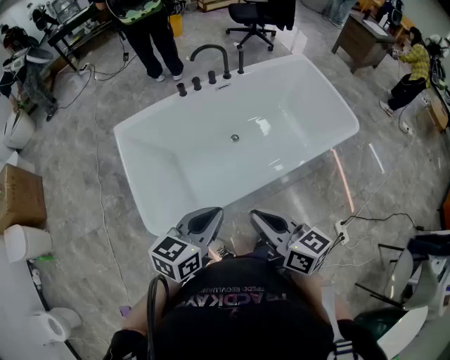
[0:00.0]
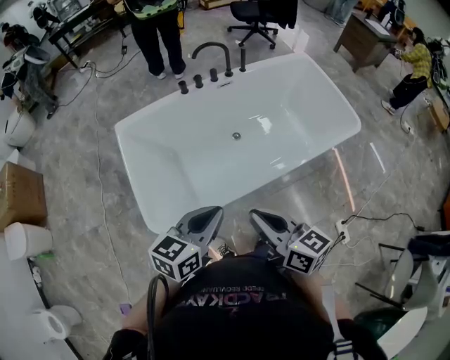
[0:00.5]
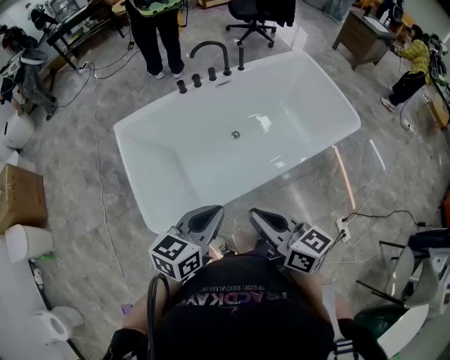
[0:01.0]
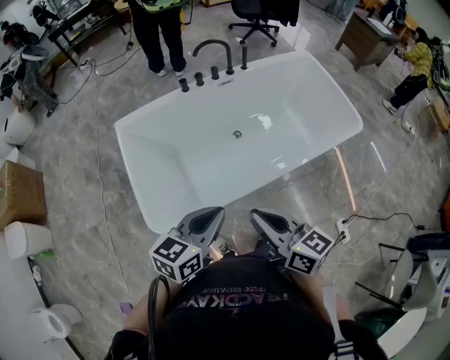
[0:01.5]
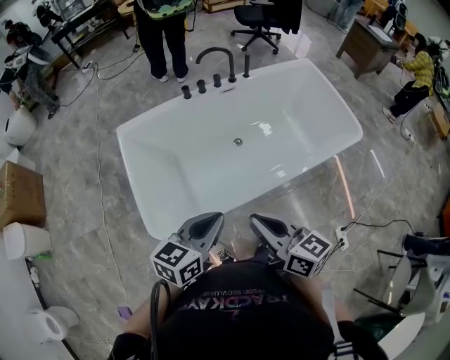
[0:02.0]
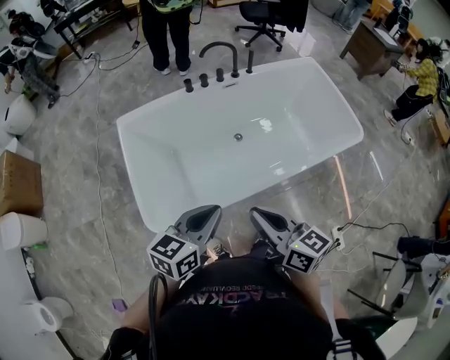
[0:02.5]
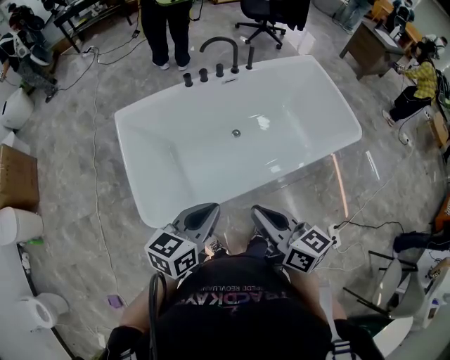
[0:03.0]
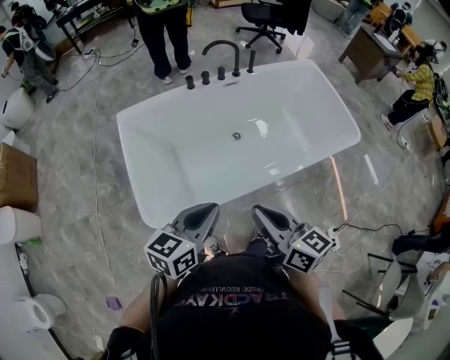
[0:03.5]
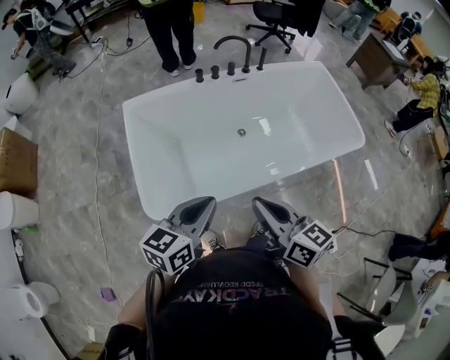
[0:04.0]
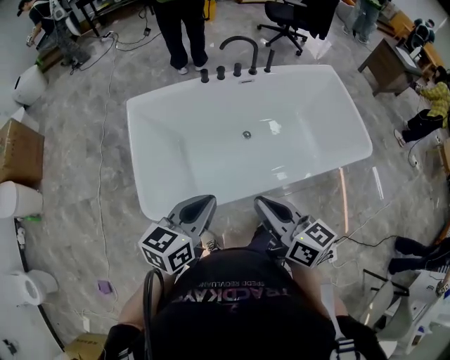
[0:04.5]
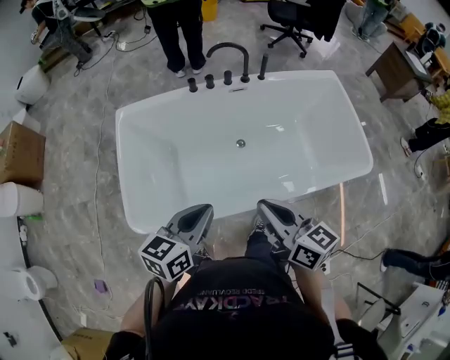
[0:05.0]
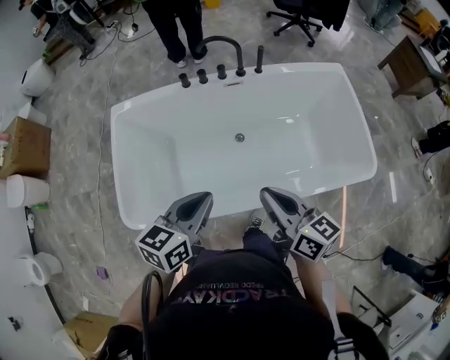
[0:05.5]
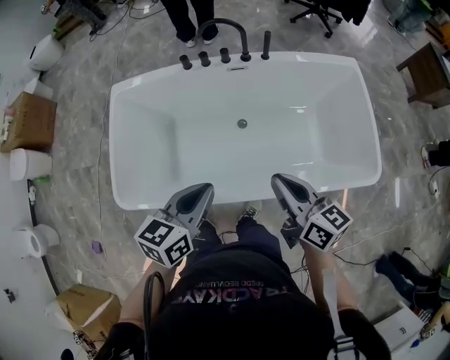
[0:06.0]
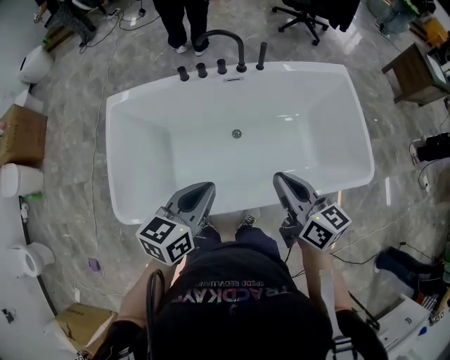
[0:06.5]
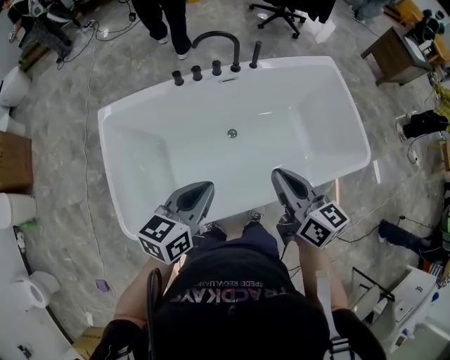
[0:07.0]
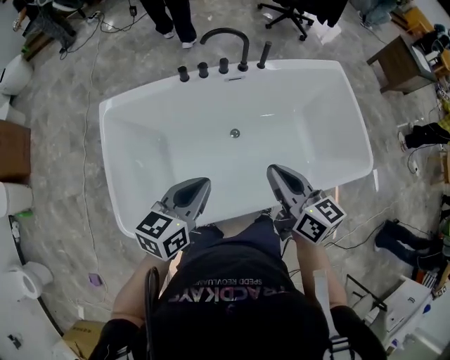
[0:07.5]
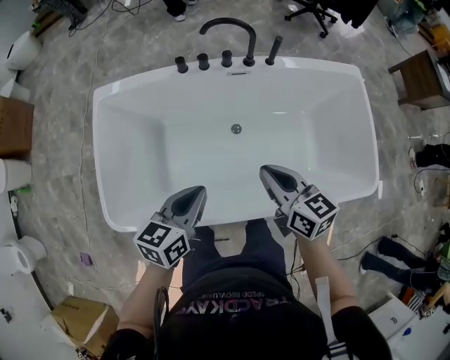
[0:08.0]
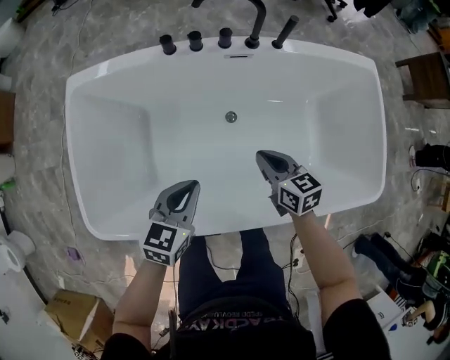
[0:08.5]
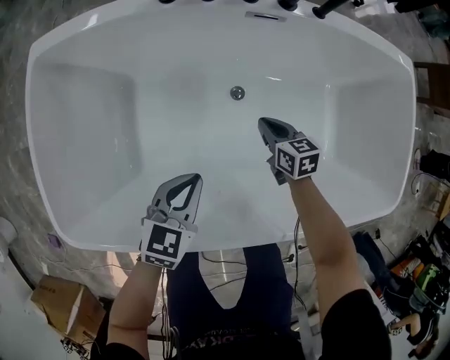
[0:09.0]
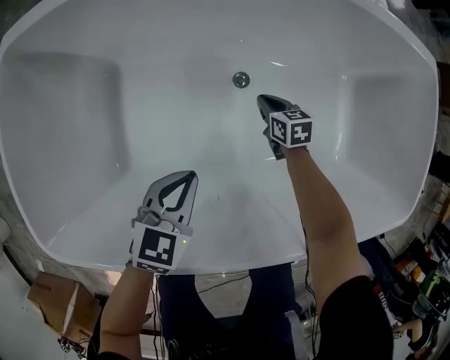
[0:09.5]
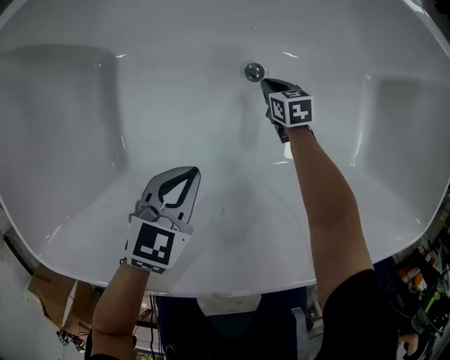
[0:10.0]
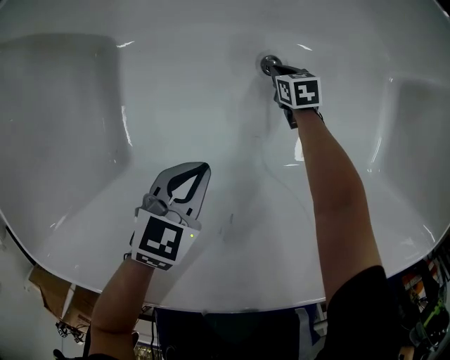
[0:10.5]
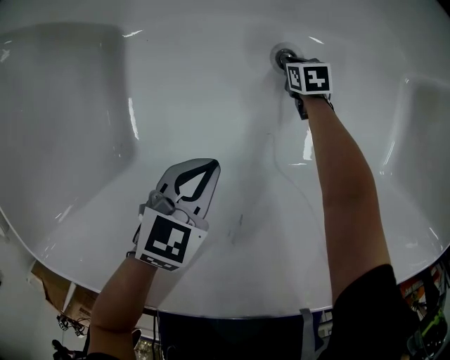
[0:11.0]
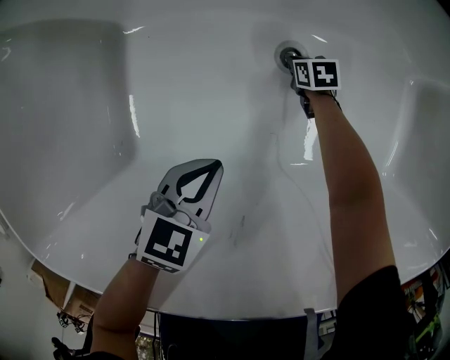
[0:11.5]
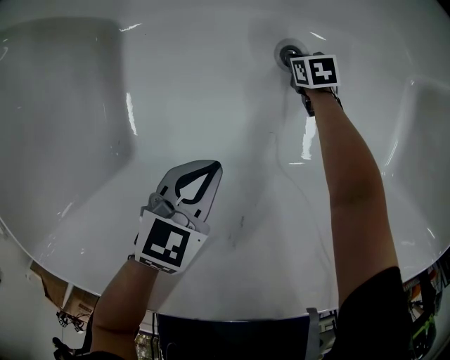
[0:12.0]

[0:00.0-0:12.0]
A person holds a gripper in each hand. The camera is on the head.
0:00.0 to 0:04.0: The grippers stay close to where they were, moving slightly.
0:04.0 to 0:06.0: The two grippers go roughly 30 cm to the right and forward.
0:06.0 to 0:08.0: The right gripper goes roughly 10 cm to the left, forward and downward; the left gripper moves to the left, downward and forward, roughly 10 cm.
0:08.0 to 0:10.0: The right gripper heads downward, covering approximately 60 cm, and tilts its fingers some 30 degrees downward, while the left gripper moves downward, about 35 cm, and turns by some 20 degrees.
0:10.0 to 0:12.0: The left gripper travels downward by some 5 cm. The right gripper is displaced downward by roughly 10 cm.

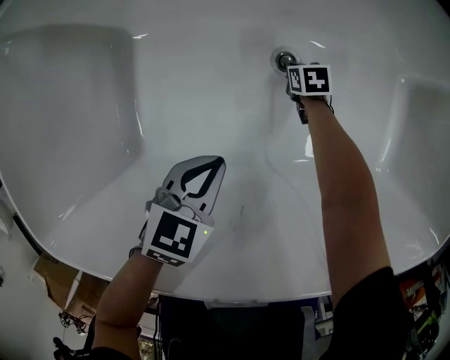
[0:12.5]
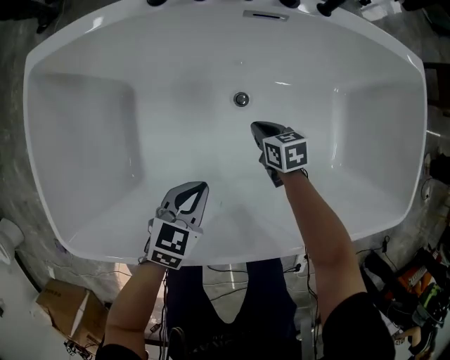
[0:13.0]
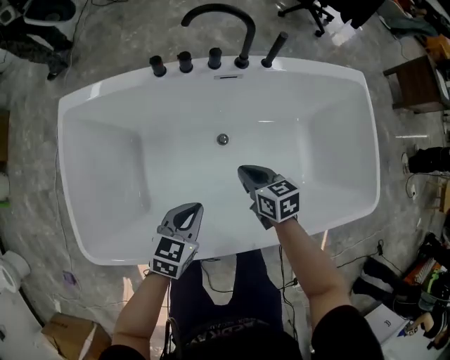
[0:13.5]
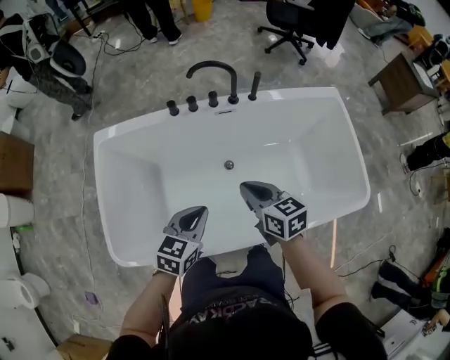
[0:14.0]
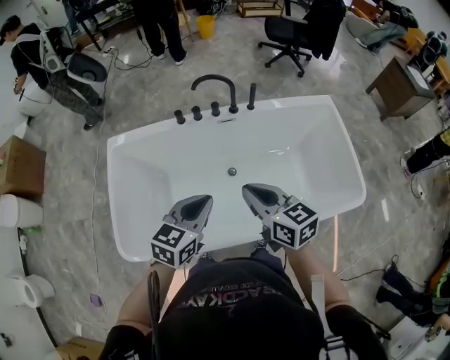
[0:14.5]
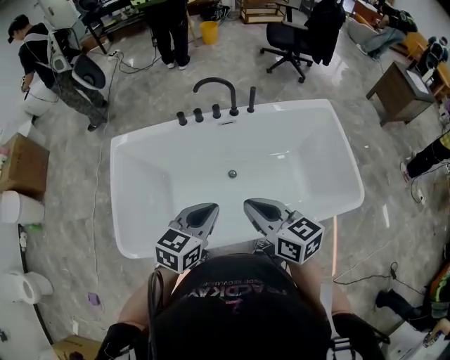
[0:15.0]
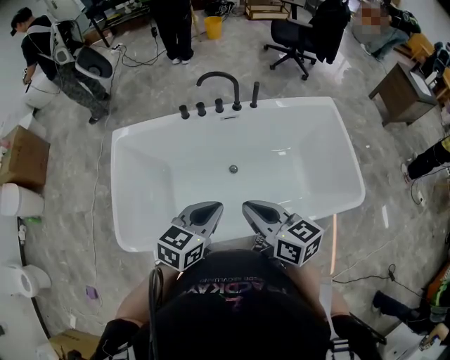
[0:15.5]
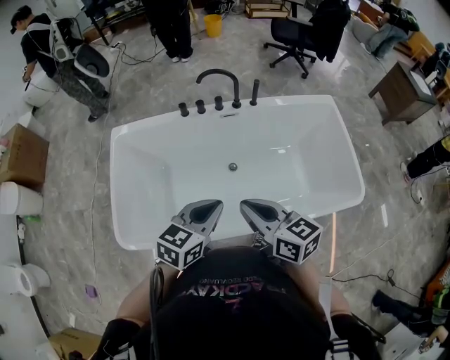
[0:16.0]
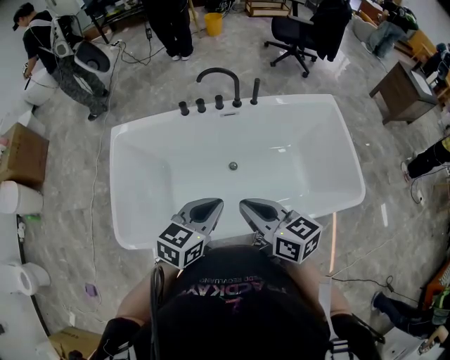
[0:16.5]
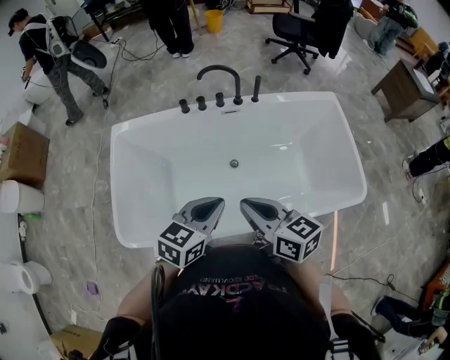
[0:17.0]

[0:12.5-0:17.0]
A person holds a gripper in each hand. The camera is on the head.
0:12.5 to 0:14.5: The right gripper goes roughly 70 cm upward, and tips its fingers upward by some 50 degrees, while the left gripper moves upward, about 50 cm, and rotates about 20 degrees.
0:14.5 to 0:17.0: The two grippers go some 5 cm backward.

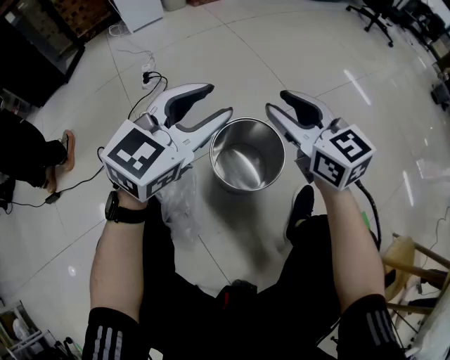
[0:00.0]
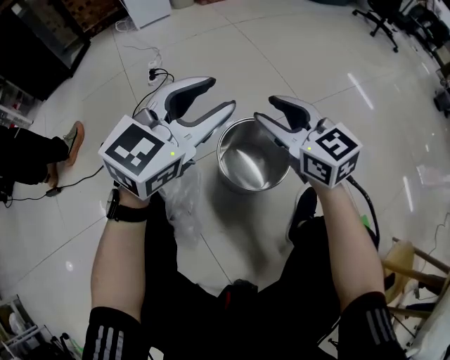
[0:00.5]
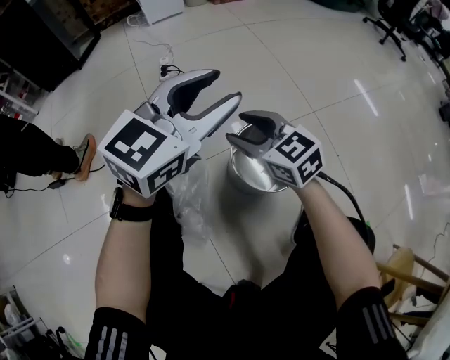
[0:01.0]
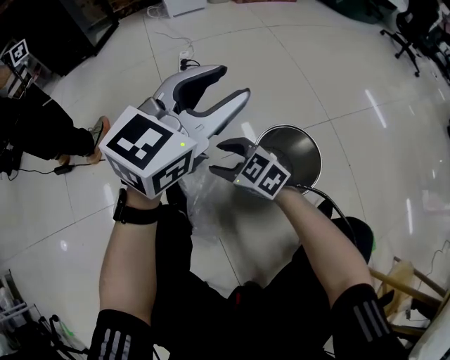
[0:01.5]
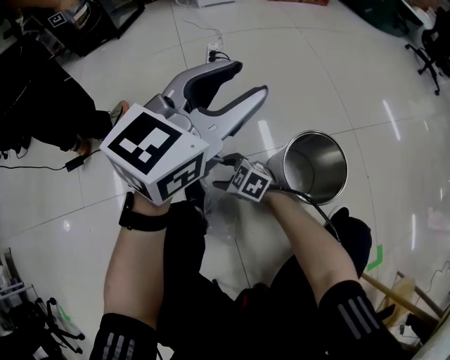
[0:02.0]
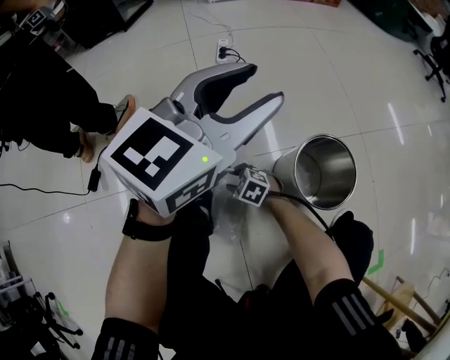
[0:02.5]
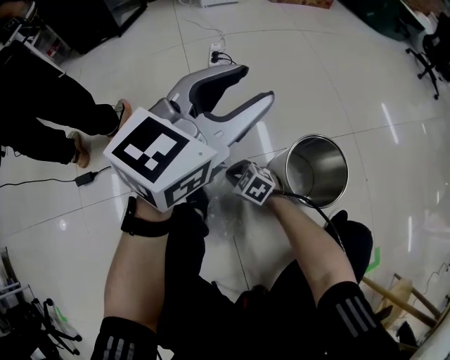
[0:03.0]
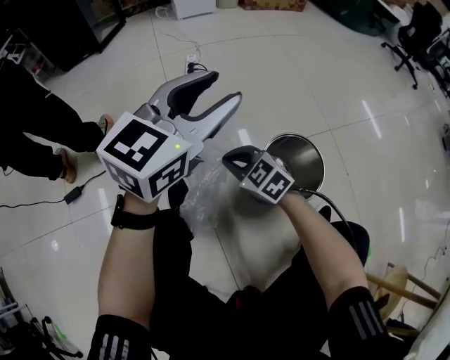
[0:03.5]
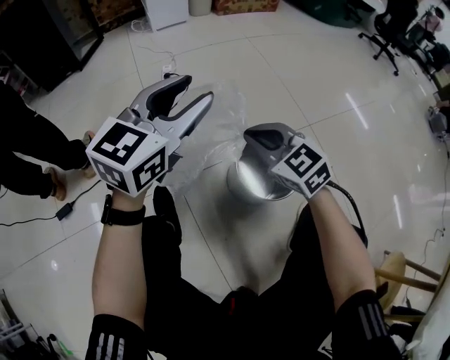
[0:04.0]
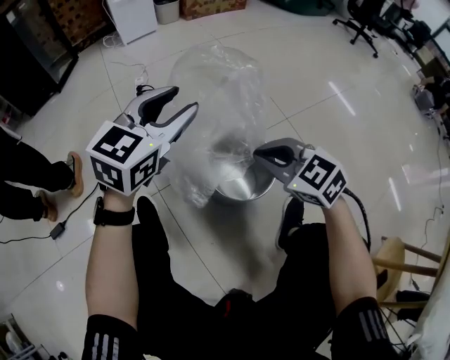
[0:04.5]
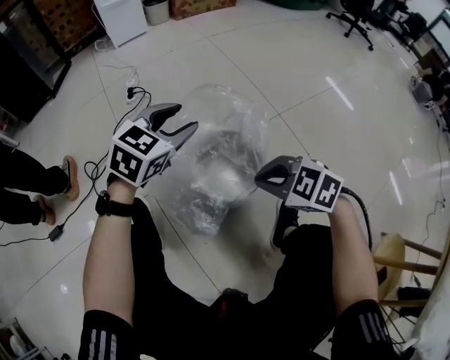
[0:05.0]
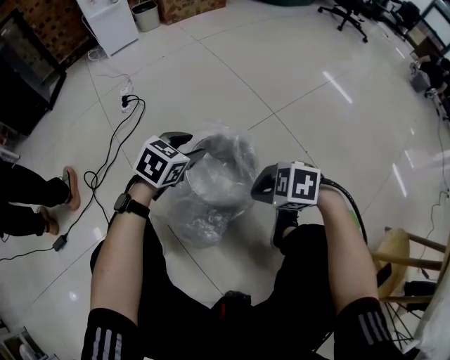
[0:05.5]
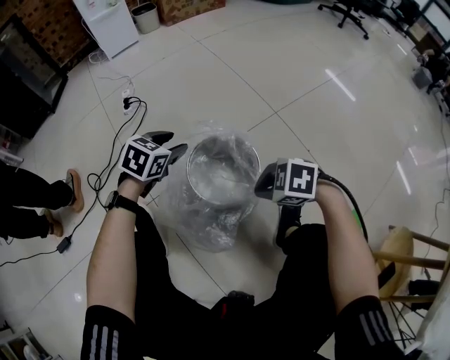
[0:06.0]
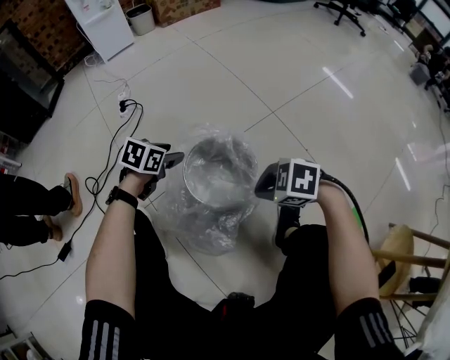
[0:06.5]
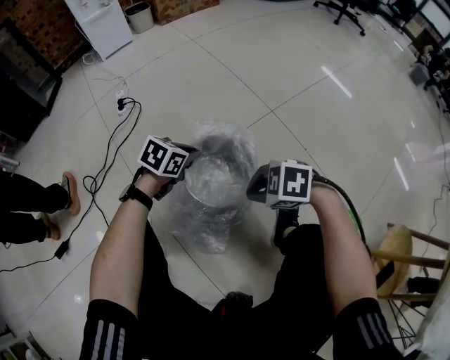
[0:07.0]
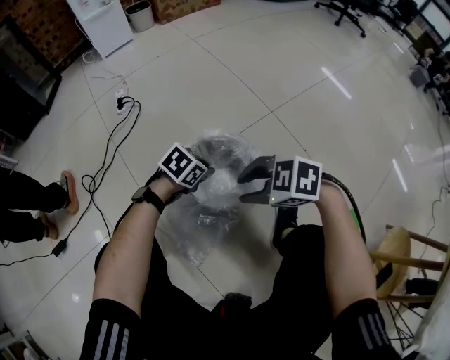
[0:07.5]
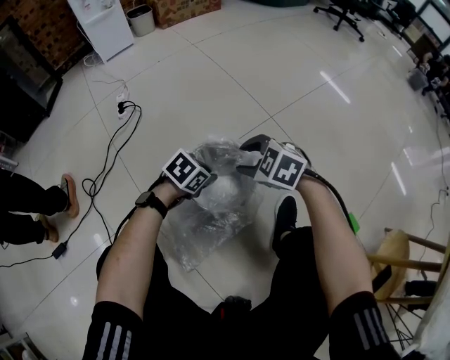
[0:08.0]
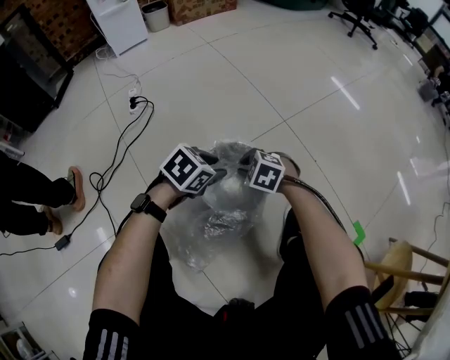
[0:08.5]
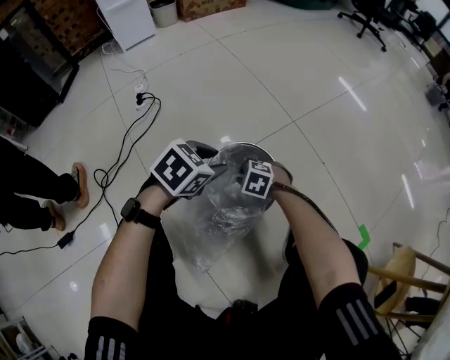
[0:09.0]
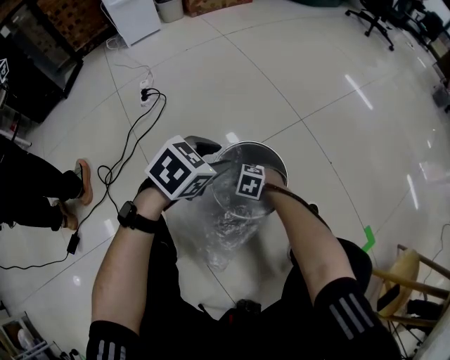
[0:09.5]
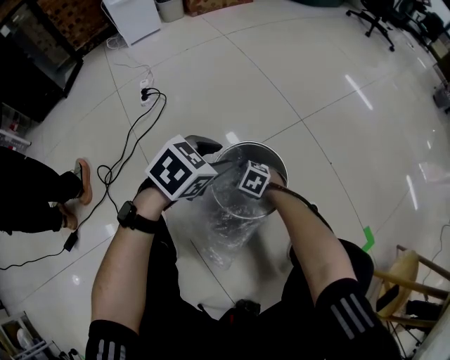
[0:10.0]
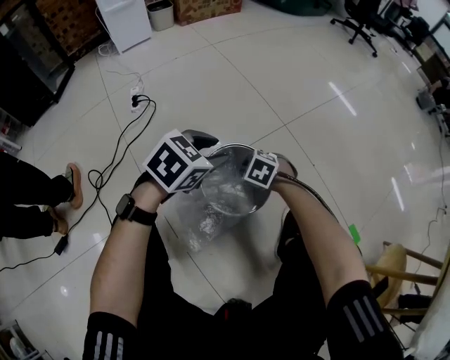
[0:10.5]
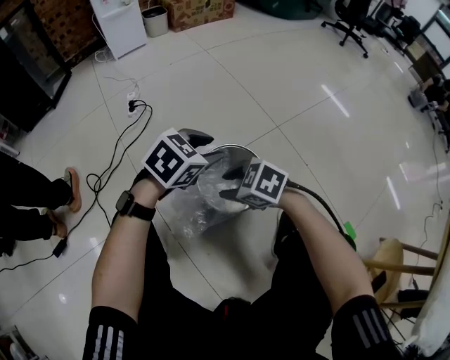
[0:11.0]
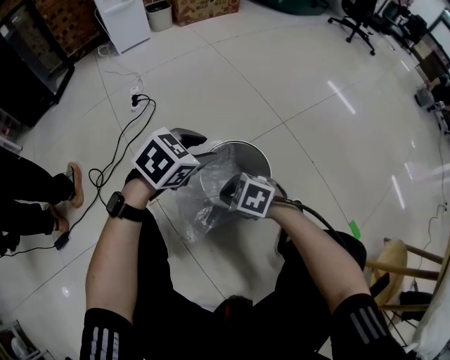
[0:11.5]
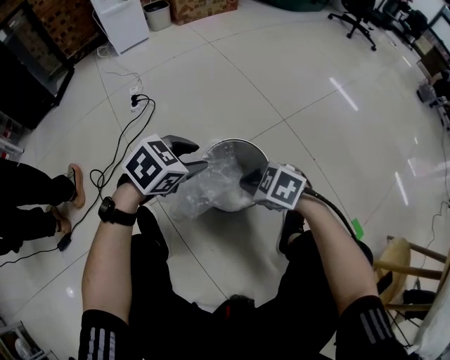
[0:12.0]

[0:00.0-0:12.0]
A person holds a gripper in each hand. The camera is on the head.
0:00.0 to 0:02.0: The left gripper moves approximately 20 cm, while the right gripper moves about 50 cm, and tips its fingers downward by some 30 degrees.
0:02.0 to 0:04.0: The right gripper moves upward and to the right, about 30 cm, swivels roughly 30 degrees, and closes up.
0:04.0 to 0:06.0: The left gripper goes roughly 25 cm downward, and tilts its fingers roughly 40 degrees downward; the right gripper ends up roughly 25 cm from where it was, and points its fingers roughly 30 degrees further downward.
0:06.0 to 0:08.0: The right gripper changes place by about 10 cm, changes its angle by roughly 20 degrees, and opens. Meanwhile the left gripper shifts by approximately 15 cm, rotates roughly 30 degrees, and closes its fingers.
0:08.0 to 0:10.0: The left gripper goes some 15 cm upward. Meanwhile the right gripper is displaced downward by roughly 20 cm.
0:10.0 to 0:12.0: The right gripper moves up and down over some 20 cm, changing direction 2 times, and closes.
